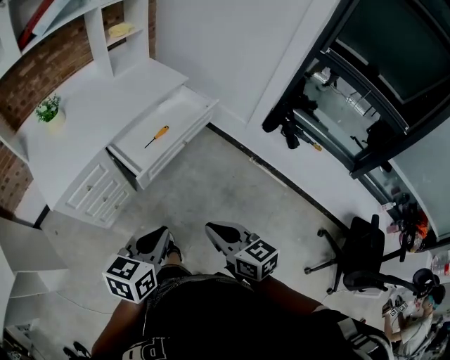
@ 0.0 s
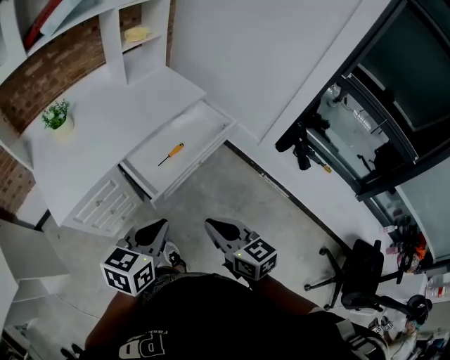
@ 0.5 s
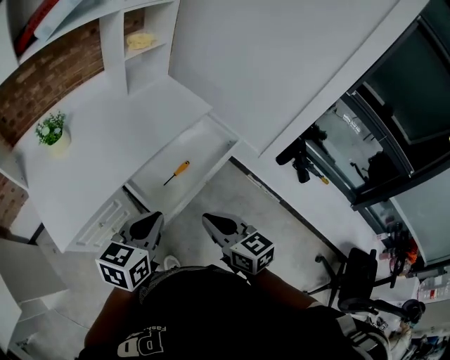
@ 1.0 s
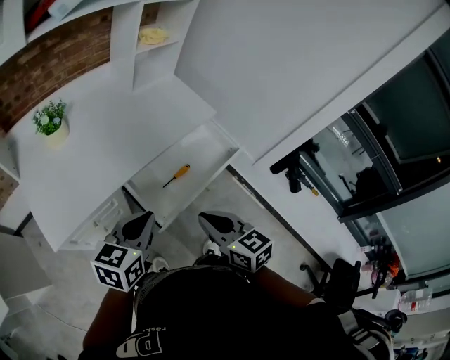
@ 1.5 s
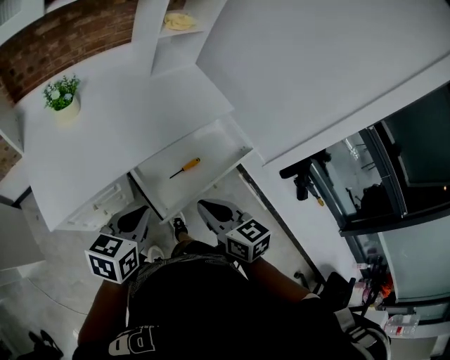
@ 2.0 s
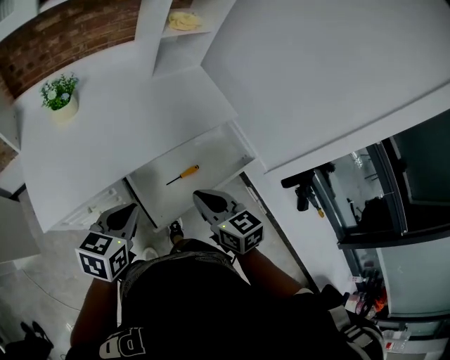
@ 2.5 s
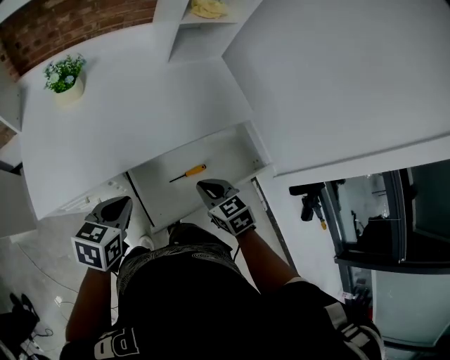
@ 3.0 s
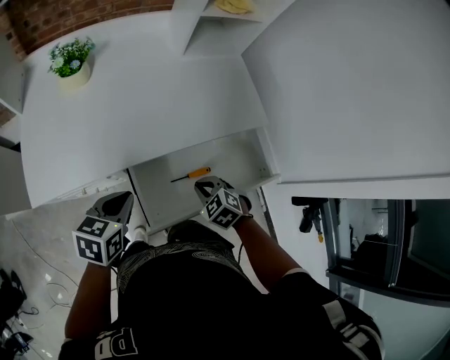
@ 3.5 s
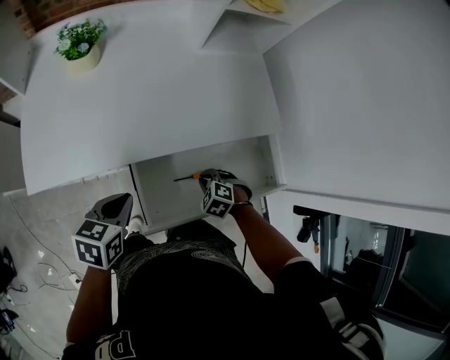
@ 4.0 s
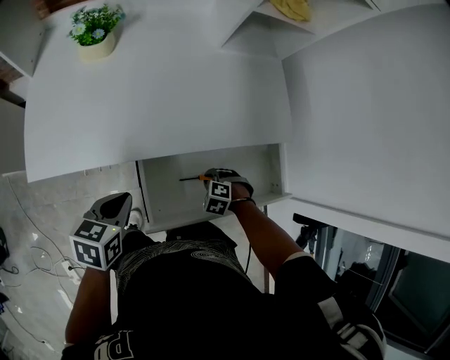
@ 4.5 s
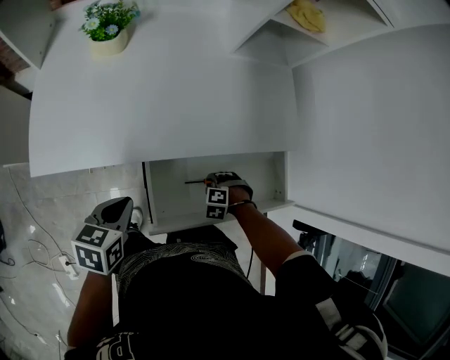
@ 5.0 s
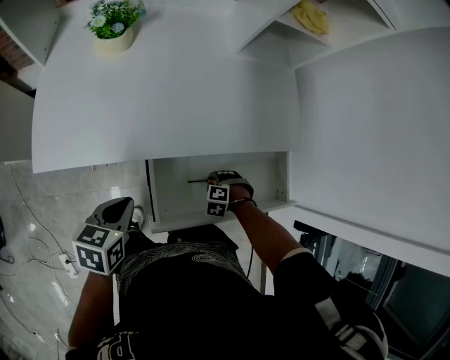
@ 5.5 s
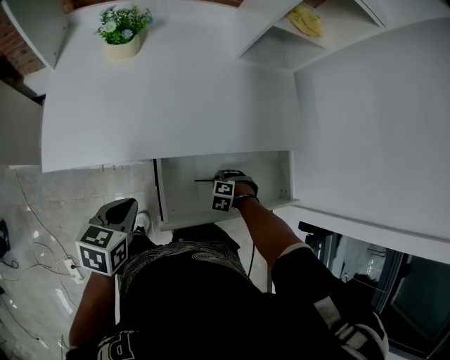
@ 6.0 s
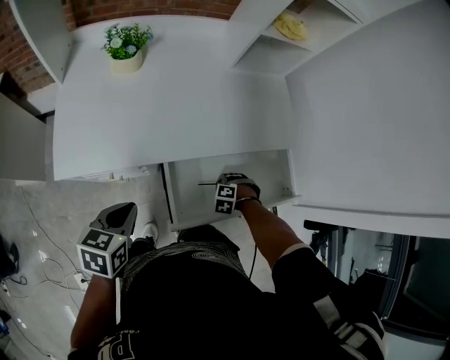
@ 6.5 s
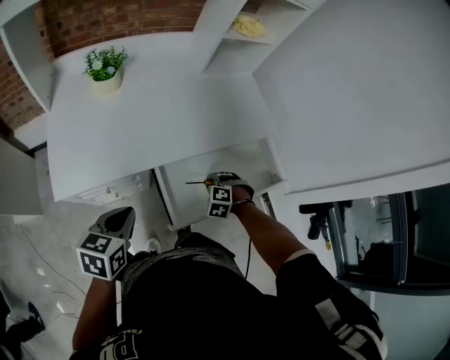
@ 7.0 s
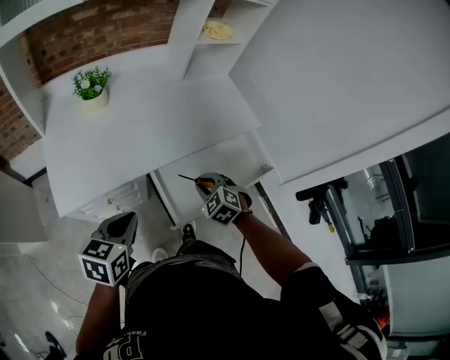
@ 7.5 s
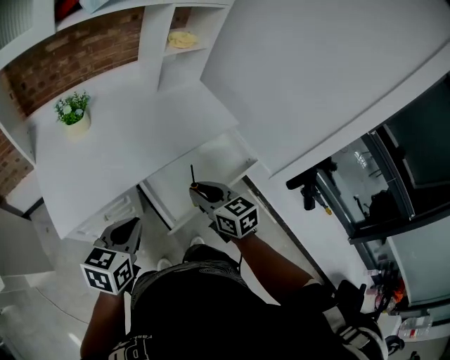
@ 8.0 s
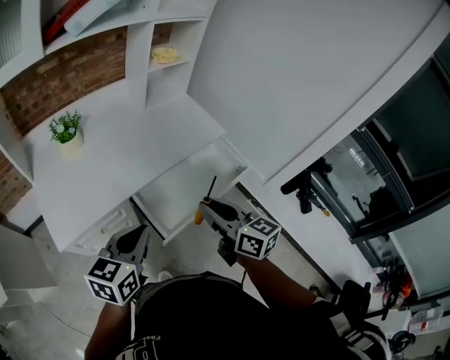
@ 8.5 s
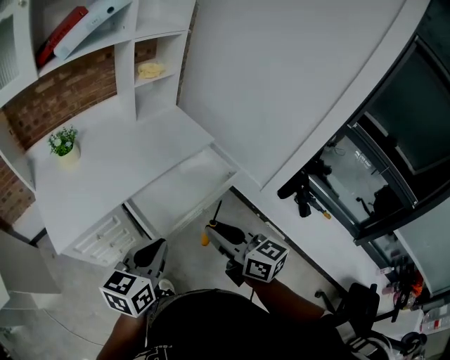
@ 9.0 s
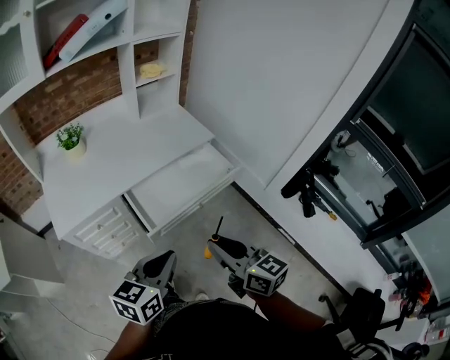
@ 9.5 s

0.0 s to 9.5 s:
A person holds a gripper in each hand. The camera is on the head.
0.0 to 2.0 s: Both grippers travel together forward and to the left, about 35 cm.
2.0 to 4.0 s: The right gripper heads downward, covering roughly 30 cm, and tilts its fingers roughly 50 degrees downward. The left gripper travels downward by roughly 10 cm, and turns by approximately 30 degrees.
4.0 to 5.5 s: The right gripper shifts approximately 10 cm downward, and changes its angle by roughly 30 degrees. The left gripper changes place by approximately 5 cm.
5.5 to 7.5 s: The left gripper travels upward by some 10 cm, and changes its angle by some 30 degrees; the right gripper goes about 25 cm upward, and tips its fingers upward by about 30 degrees.
7.5 to 9.5 s: The left gripper moves to the right, backward and upward, roughly 30 cm; the right gripper shifts roughly 40 cm backward, upward and to the right, and angles its fingers upward, by about 40 degrees.

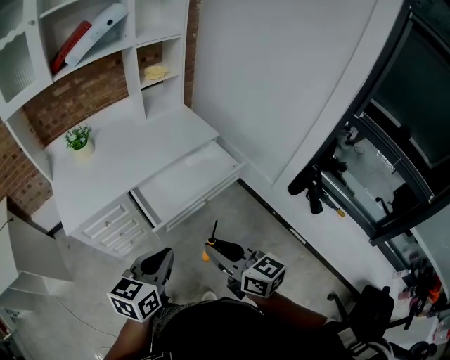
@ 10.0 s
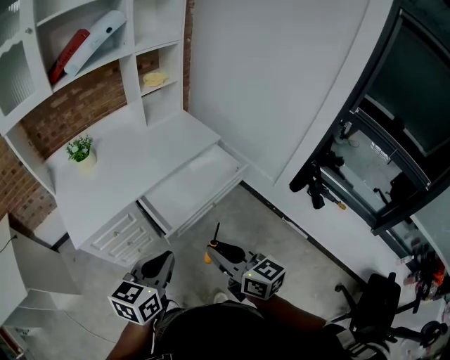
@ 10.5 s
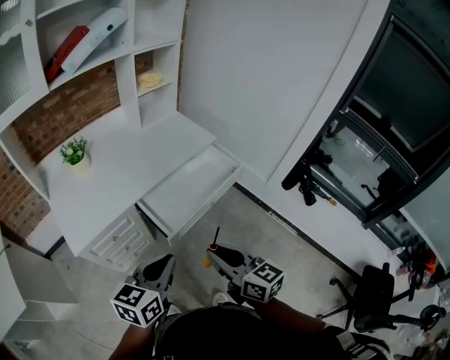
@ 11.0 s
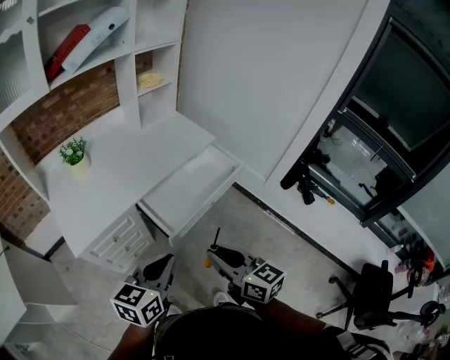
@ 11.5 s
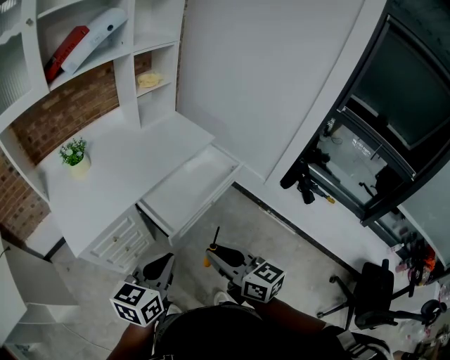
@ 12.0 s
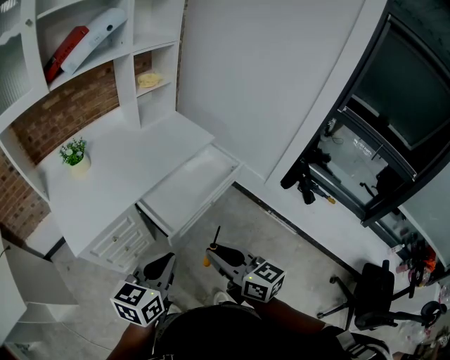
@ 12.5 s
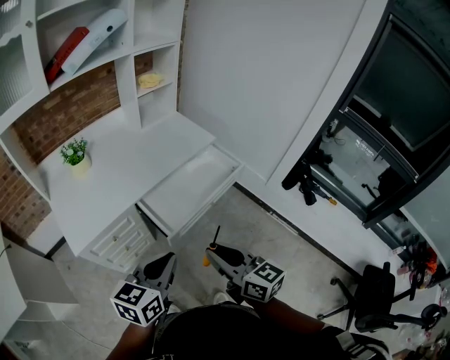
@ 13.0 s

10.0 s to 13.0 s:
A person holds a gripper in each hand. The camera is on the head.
10.0 to 11.5 s: The grippers both shift to the left by approximately 10 cm.
11.5 to 13.0 s: The grippers stay close to where they were, moving slightly.

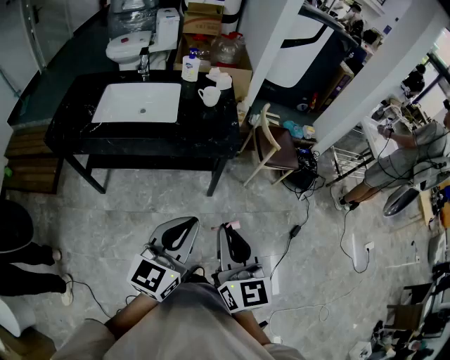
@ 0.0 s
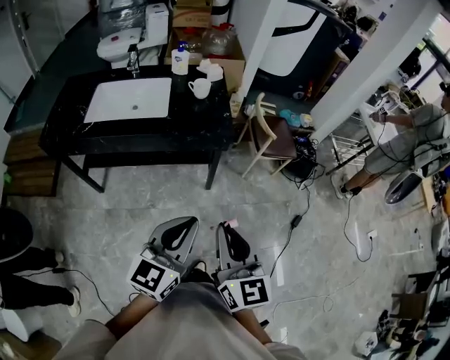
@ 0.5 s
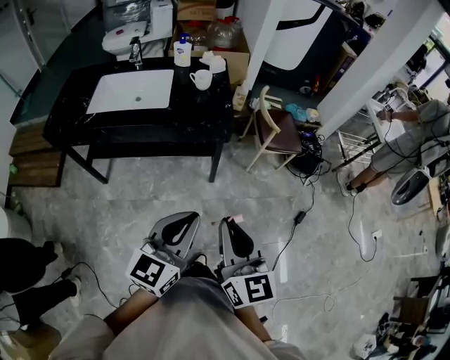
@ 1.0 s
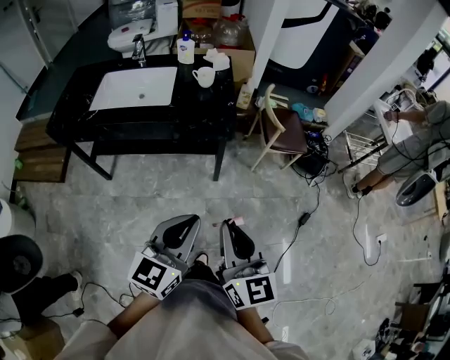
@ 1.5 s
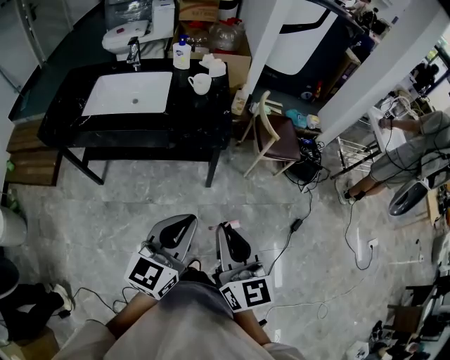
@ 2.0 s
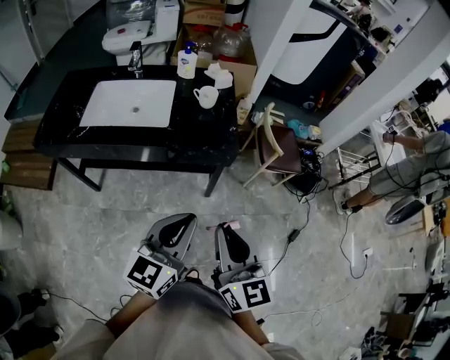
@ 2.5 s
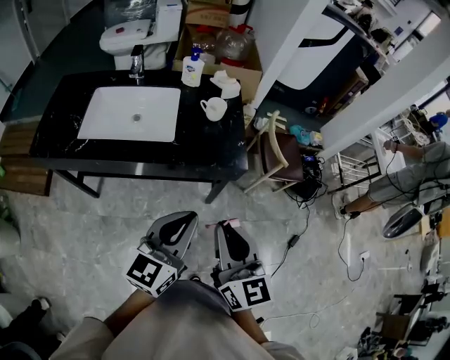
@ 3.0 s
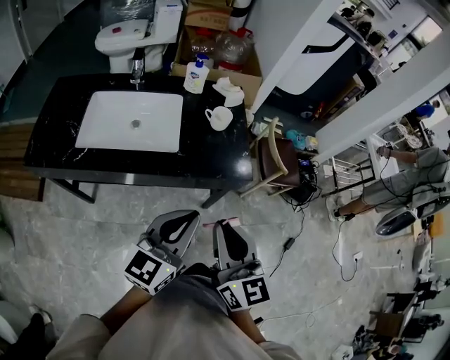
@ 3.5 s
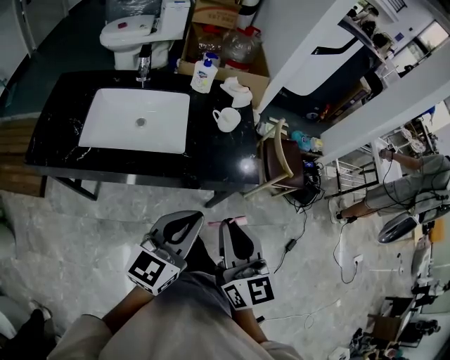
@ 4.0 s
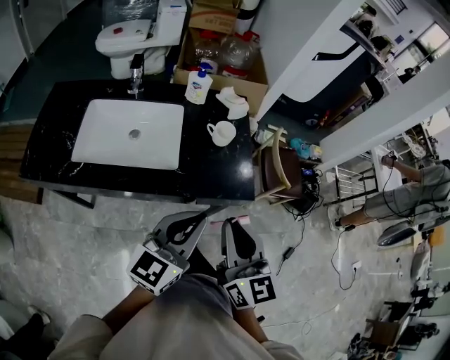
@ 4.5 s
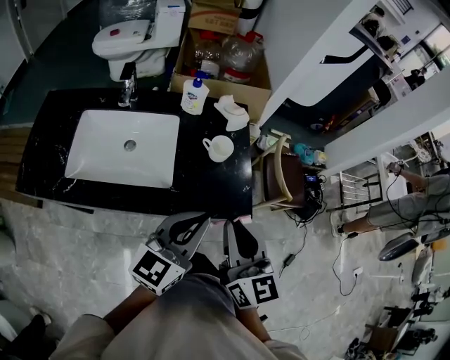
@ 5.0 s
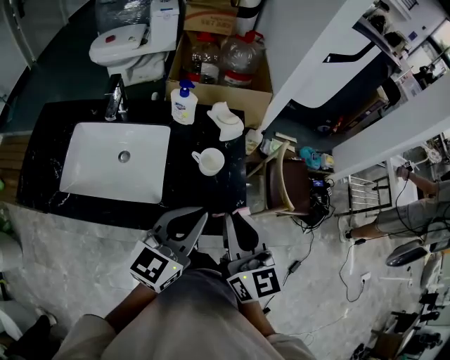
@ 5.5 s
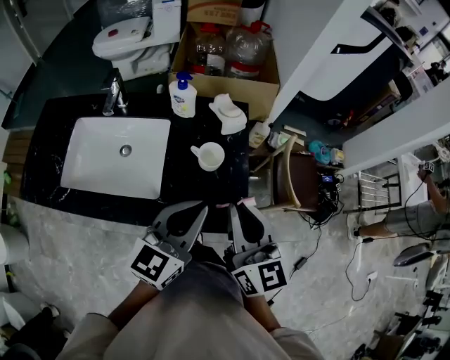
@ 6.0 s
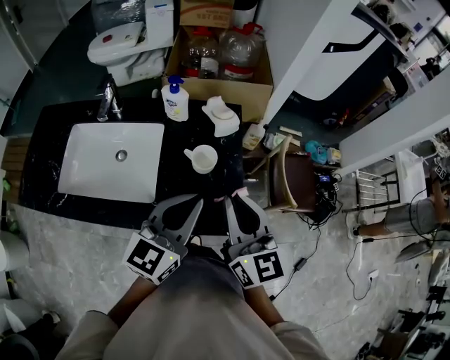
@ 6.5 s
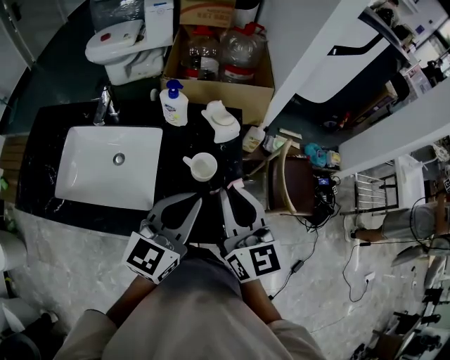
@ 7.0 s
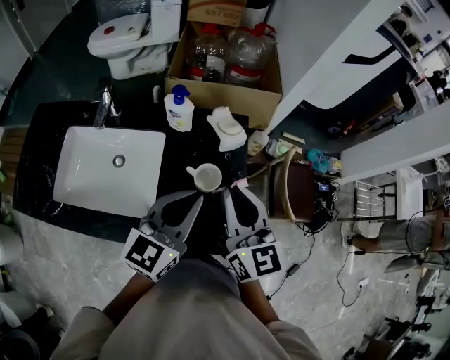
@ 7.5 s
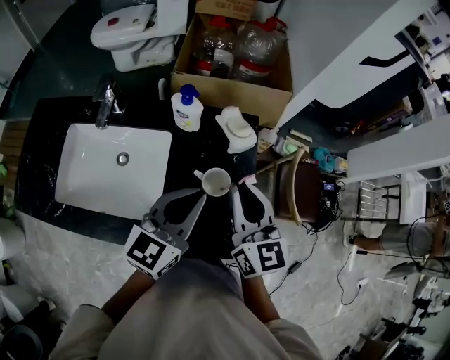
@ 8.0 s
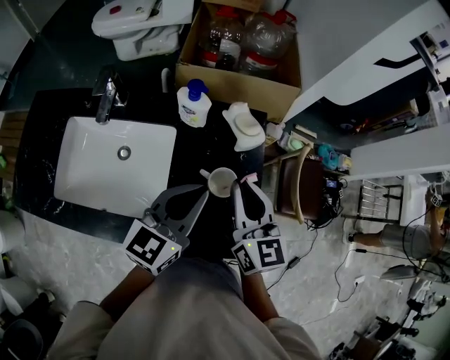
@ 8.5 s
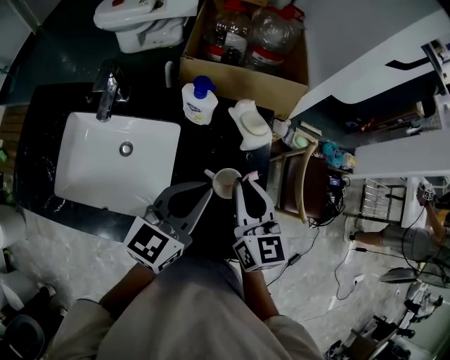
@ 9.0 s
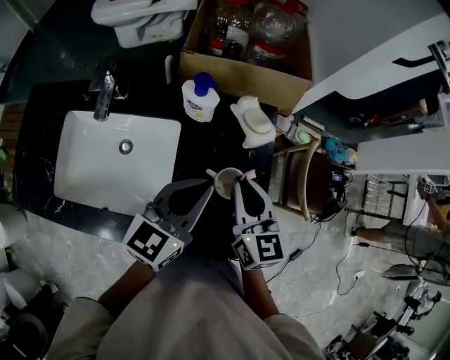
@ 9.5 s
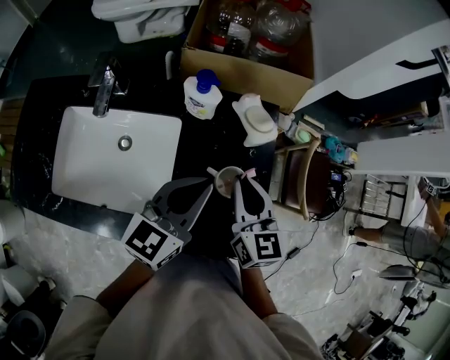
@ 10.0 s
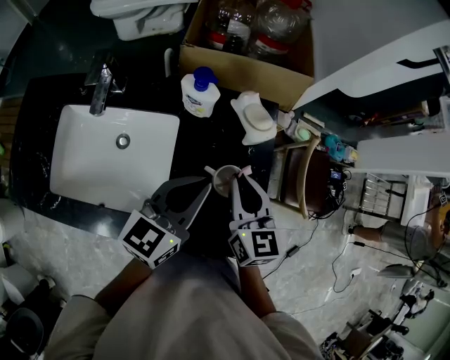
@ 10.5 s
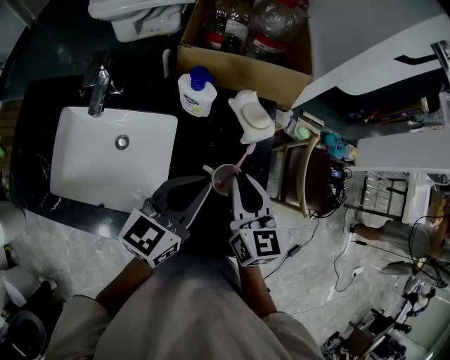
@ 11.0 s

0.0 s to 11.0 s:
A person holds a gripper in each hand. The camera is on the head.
0.0 to 2.0 s: The grippers both shift to the right by some 5 cm.
2.0 to 3.5 s: The grippers both shift forward and to the left by approximately 25 cm.
3.5 to 5.5 s: Both grippers travel together forward, about 25 cm.
5.5 to 7.5 s: Both grippers move forward, some 10 cm.
7.5 to 9.0 s: The right gripper moves downward and forward, approximately 10 cm. Meanwhile the left gripper shifts by roughly 5 cm.
9.0 to 11.0 s: The grippers move only a little.

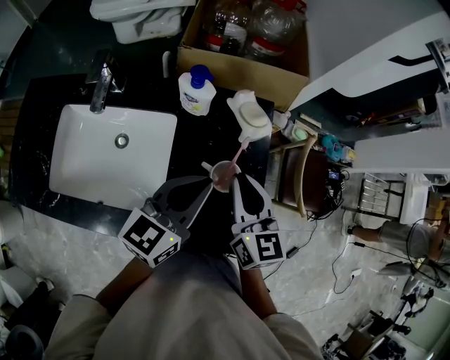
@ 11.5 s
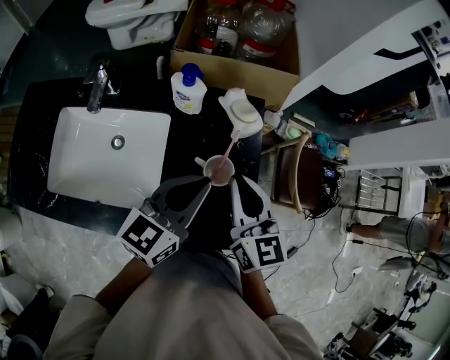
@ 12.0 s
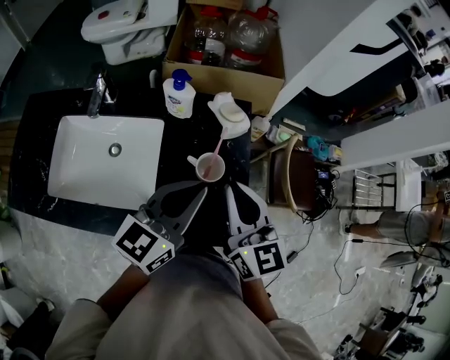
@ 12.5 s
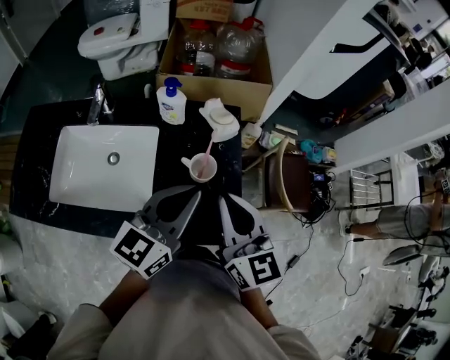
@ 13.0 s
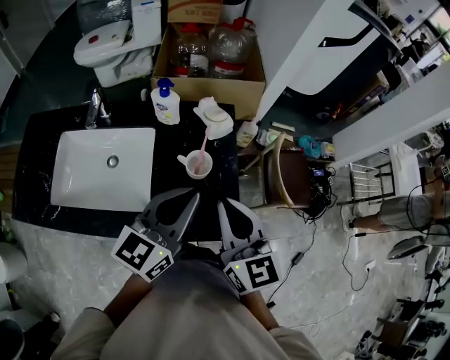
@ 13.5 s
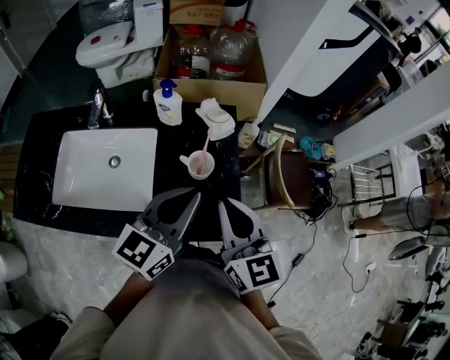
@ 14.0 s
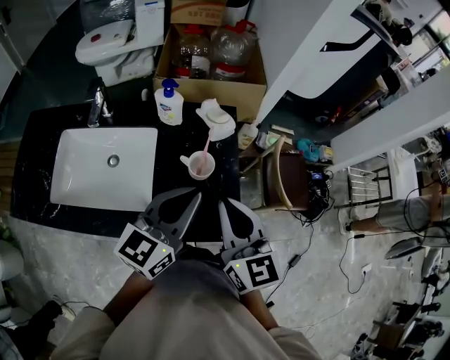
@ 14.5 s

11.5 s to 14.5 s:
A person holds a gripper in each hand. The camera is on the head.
11.5 to 13.0 s: Both grippers travel together backward and upward, approximately 10 cm.
13.0 to 14.5 s: The grippers move only a little.
